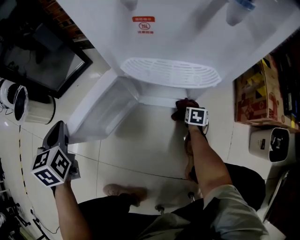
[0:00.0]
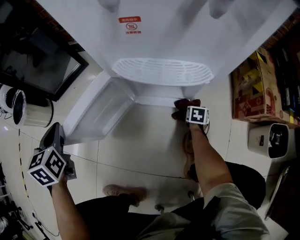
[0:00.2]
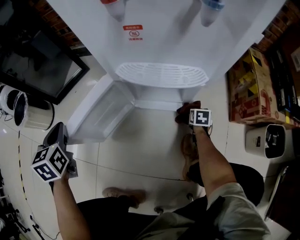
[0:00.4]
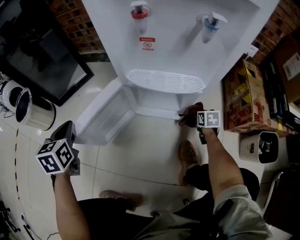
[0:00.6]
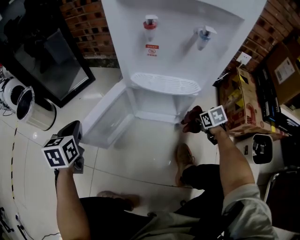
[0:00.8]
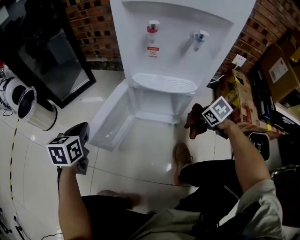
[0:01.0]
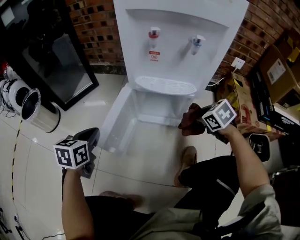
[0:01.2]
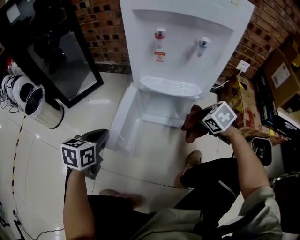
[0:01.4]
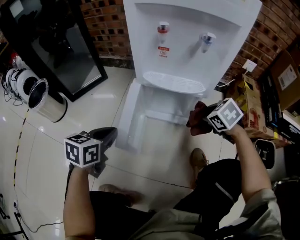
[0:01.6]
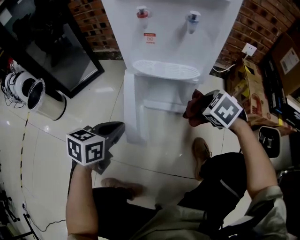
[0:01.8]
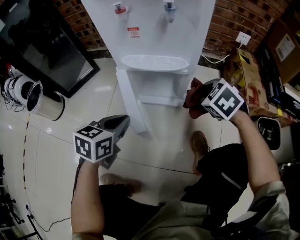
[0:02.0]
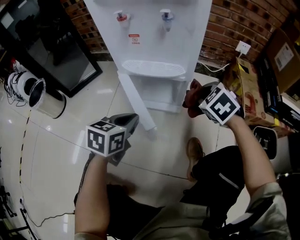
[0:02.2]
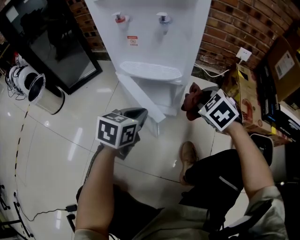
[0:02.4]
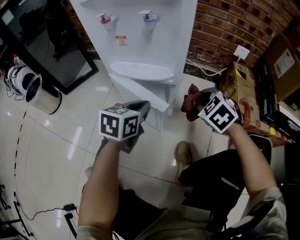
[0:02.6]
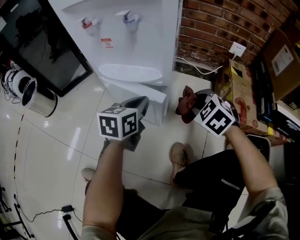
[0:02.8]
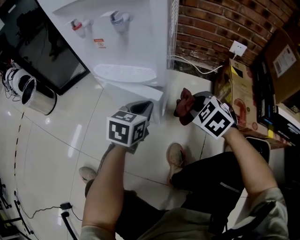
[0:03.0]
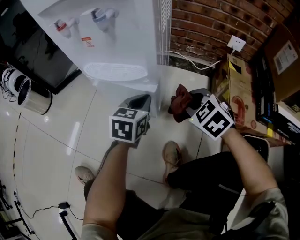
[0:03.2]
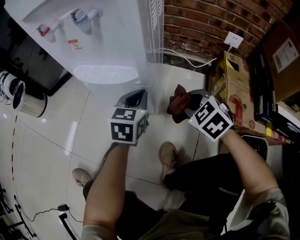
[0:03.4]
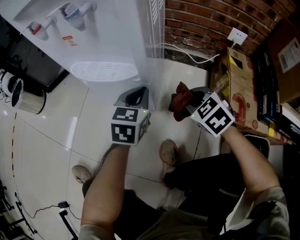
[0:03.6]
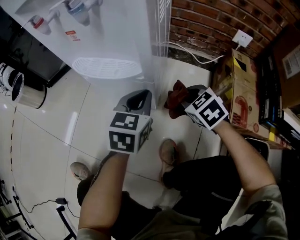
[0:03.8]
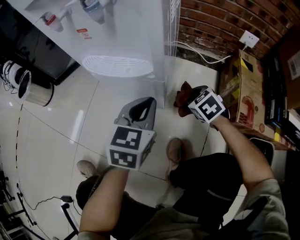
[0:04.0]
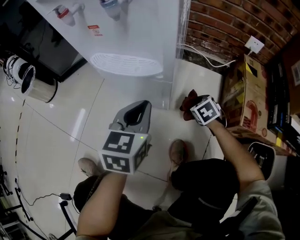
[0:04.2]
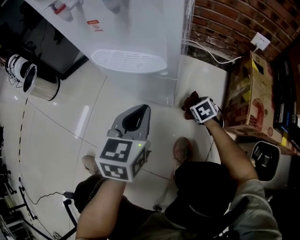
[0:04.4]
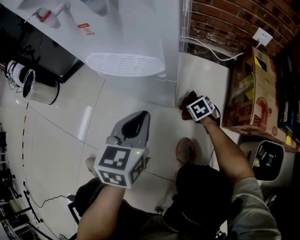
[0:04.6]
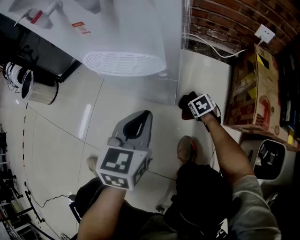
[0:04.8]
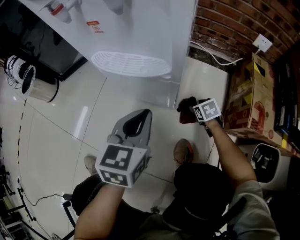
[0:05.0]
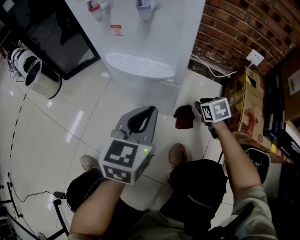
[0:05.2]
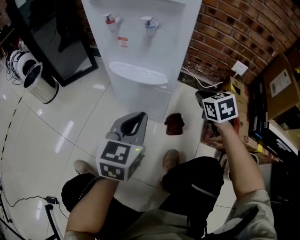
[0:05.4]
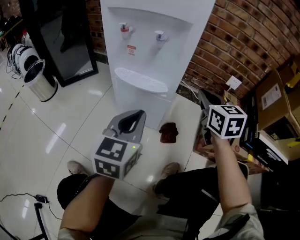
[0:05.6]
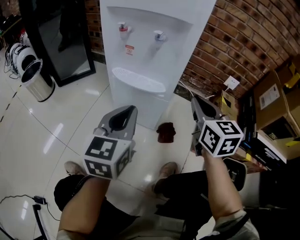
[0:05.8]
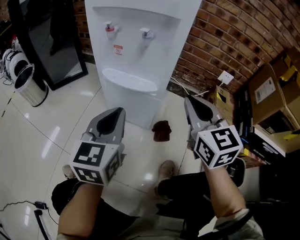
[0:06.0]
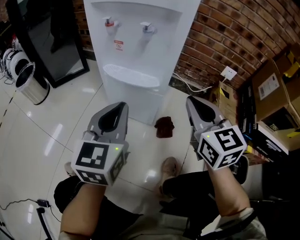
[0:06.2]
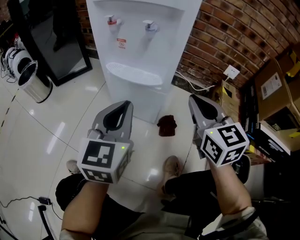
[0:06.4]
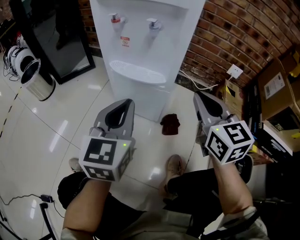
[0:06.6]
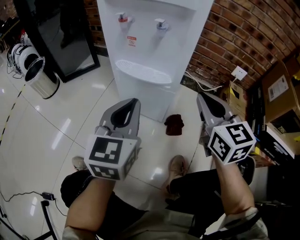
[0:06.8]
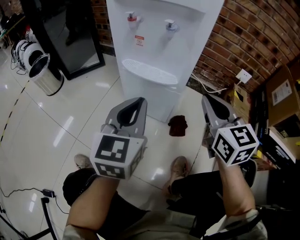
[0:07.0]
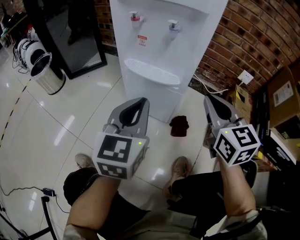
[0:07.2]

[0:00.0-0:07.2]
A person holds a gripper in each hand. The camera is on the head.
0.0 to 1.4 s: The right gripper heads upward, covering some 30 cm, and rolls counterclockwise, seen from behind, by approximately 50 degrees; the left gripper shifts some 15 cm to the right and backward, and turns by approximately 30 degrees.
1.4 to 2.8 s: The left gripper travels to the right by roughly 30 cm, while the right gripper goes roughly 10 cm to the right, and changes its angle by approximately 20 degrees.
2.8 to 4.4 s: The right gripper travels downward by approximately 25 cm, and swivels roughly 30 degrees.
4.4 to 5.8 s: The left gripper travels upward by some 15 cm. Meanwhile the right gripper goes approximately 40 cm upward, angles its fingers upward, by some 50 degrees, and closes up.
5.8 to 7.2 s: The grippers move only a little.

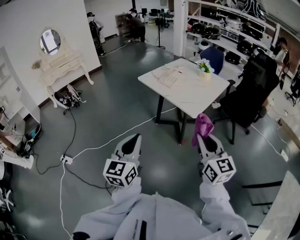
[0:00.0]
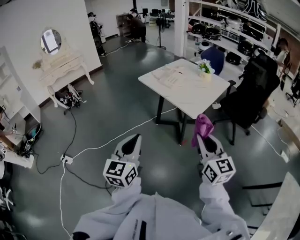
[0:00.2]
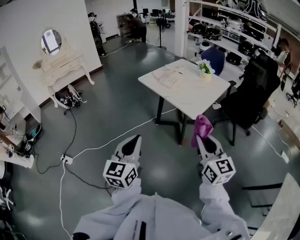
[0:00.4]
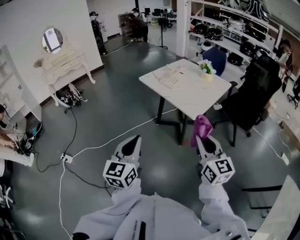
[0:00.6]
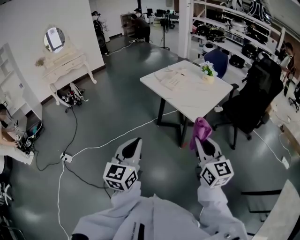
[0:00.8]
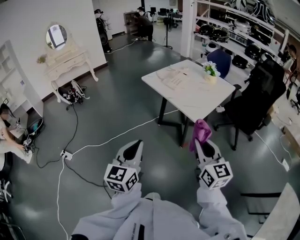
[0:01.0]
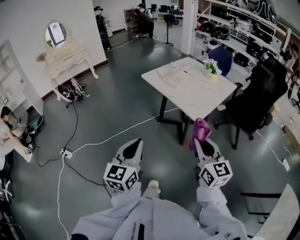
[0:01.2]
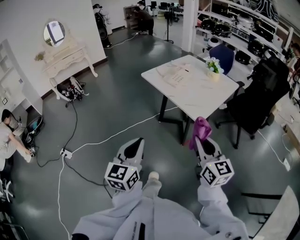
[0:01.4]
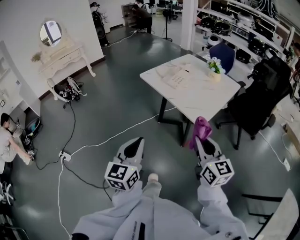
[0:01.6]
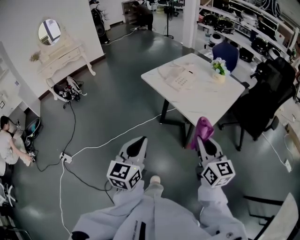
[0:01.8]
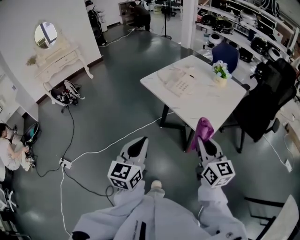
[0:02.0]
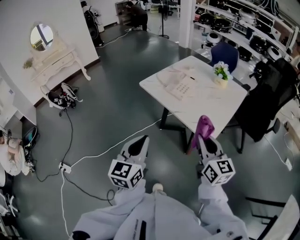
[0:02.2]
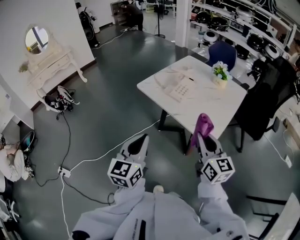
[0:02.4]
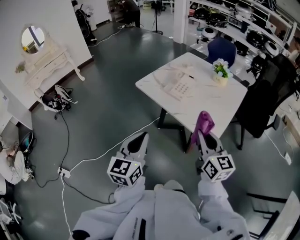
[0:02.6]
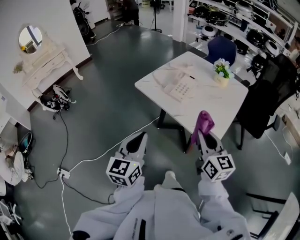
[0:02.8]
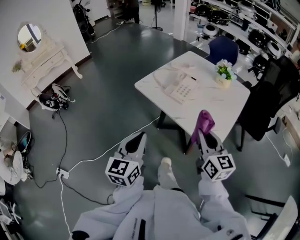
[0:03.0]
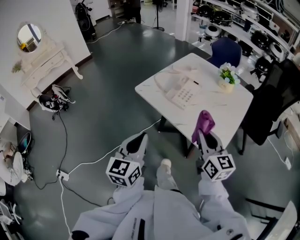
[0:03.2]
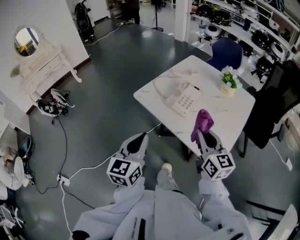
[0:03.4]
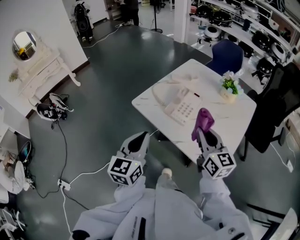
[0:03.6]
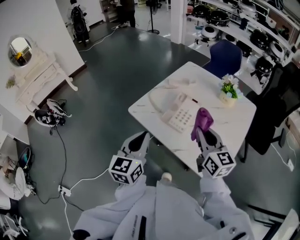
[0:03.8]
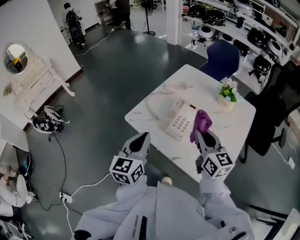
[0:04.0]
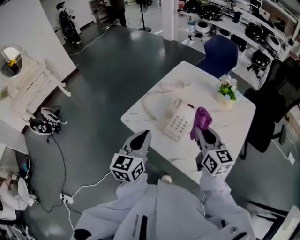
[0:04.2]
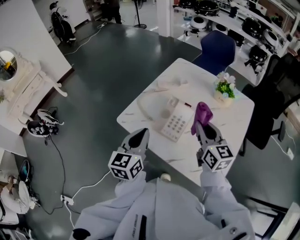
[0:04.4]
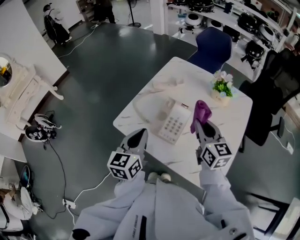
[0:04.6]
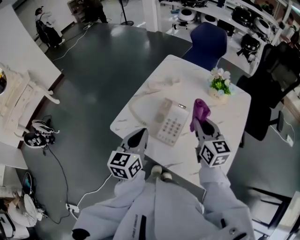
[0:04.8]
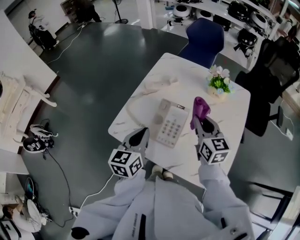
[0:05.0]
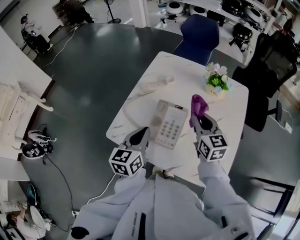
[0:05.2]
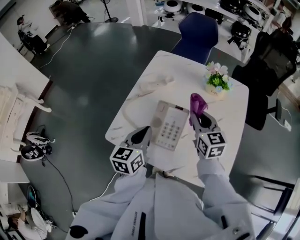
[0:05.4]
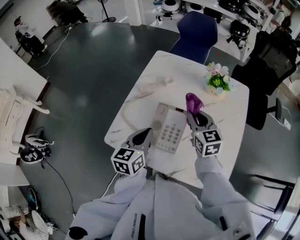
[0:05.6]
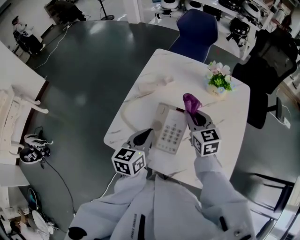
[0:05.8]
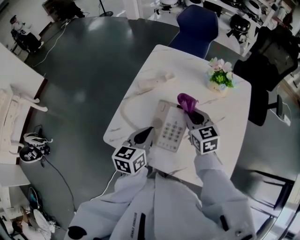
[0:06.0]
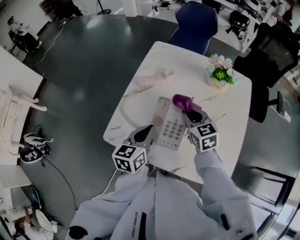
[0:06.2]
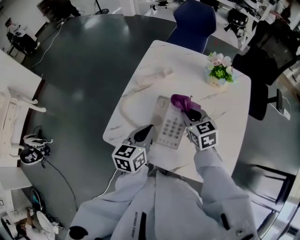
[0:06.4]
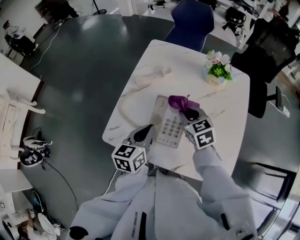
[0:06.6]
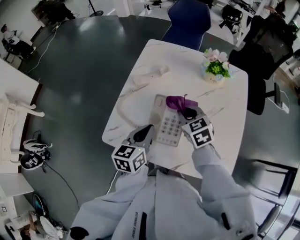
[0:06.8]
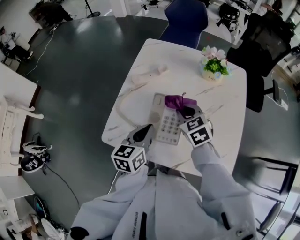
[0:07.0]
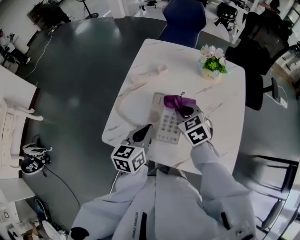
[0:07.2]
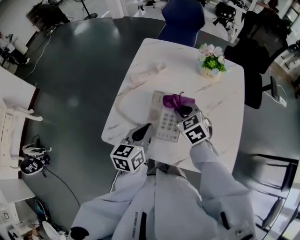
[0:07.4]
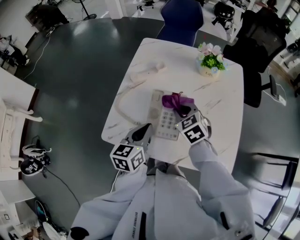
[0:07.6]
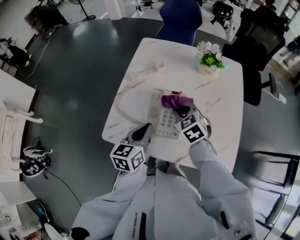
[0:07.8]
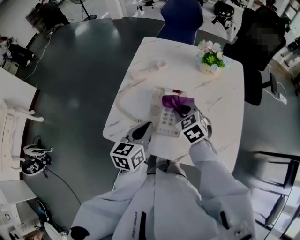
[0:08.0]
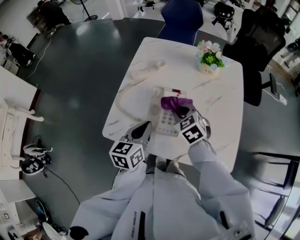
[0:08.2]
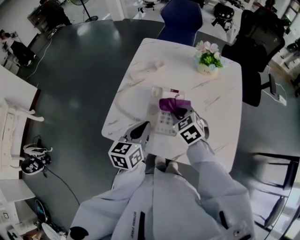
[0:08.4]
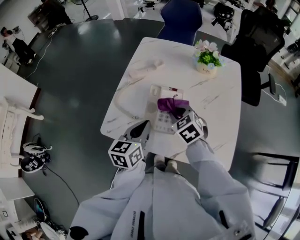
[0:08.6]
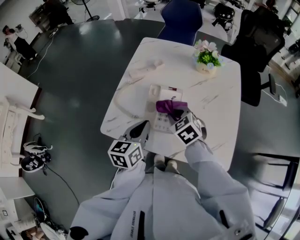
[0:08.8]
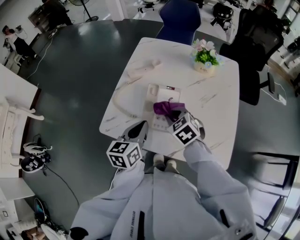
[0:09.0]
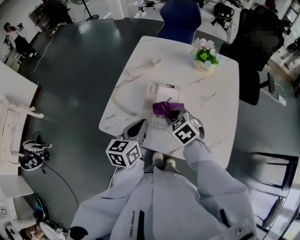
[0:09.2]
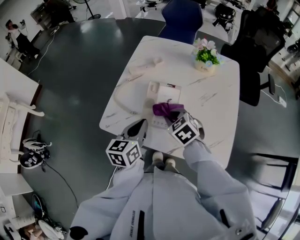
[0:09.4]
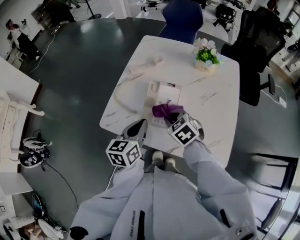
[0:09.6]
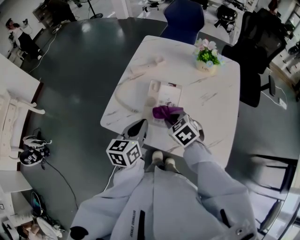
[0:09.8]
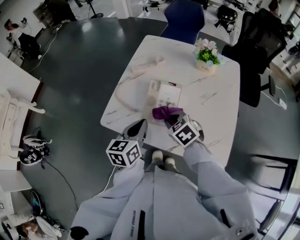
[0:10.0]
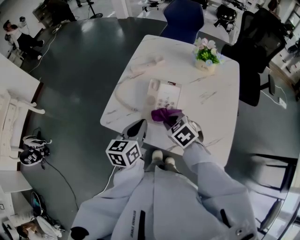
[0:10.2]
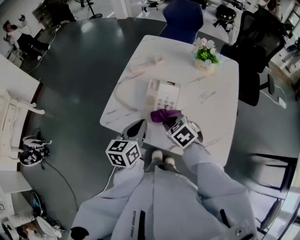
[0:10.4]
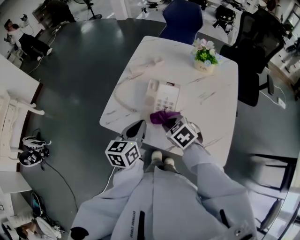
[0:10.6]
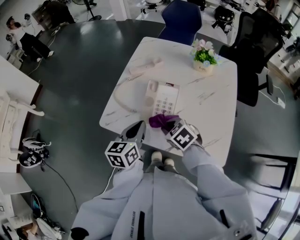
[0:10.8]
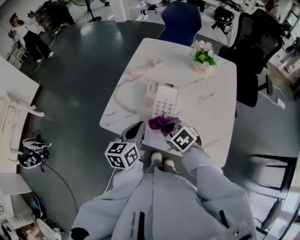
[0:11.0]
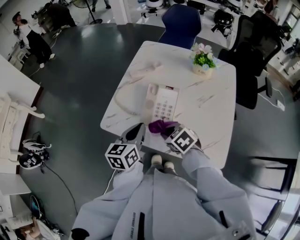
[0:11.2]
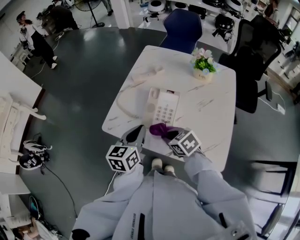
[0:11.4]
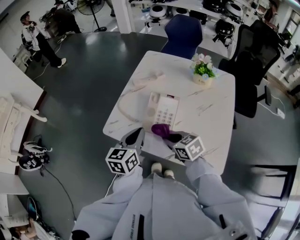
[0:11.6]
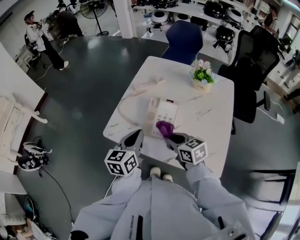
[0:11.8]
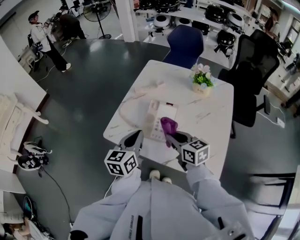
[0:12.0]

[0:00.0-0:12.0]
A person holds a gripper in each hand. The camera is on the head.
0.0 to 1.6 s: The right gripper heads forward and downward, covering roughly 15 cm; the left gripper shifts about 10 cm forward.
1.6 to 3.0 s: The grippers both shift forward by roughly 25 cm.
3.0 to 4.4 s: Both grippers travel together forward, some 30 cm.
4.4 to 6.0 s: The grippers both shift forward and downward by some 15 cm. The right gripper changes its angle by some 20 degrees. Meanwhile the left gripper turns by about 20 degrees.
6.0 to 7.6 s: The right gripper moves some 5 cm, and changes its angle by approximately 20 degrees.
7.6 to 9.0 s: The right gripper shifts approximately 5 cm backward.
9.0 to 10.4 s: The right gripper is displaced backward by approximately 5 cm.
10.4 to 12.0 s: The right gripper heads upward, covering about 10 cm, and tips its fingers upward by approximately 30 degrees. The left gripper heads upward, covering roughly 5 cm.

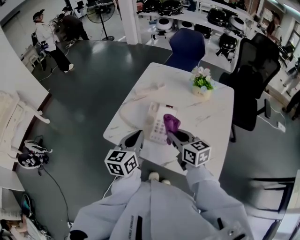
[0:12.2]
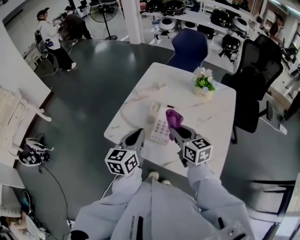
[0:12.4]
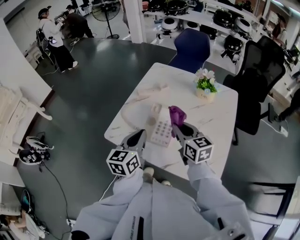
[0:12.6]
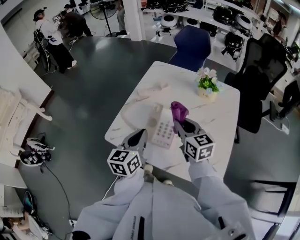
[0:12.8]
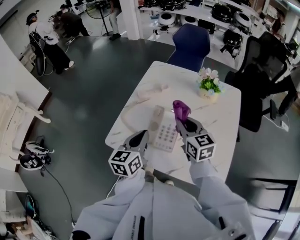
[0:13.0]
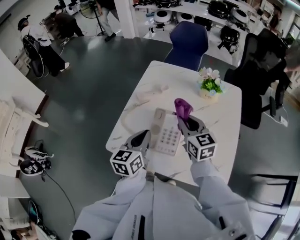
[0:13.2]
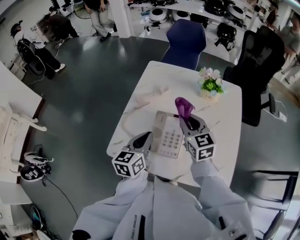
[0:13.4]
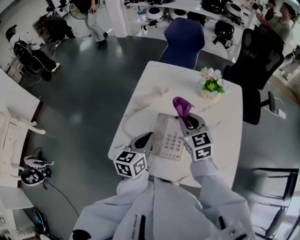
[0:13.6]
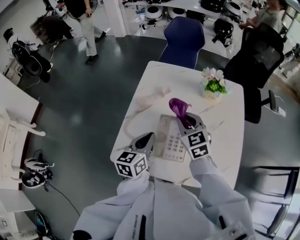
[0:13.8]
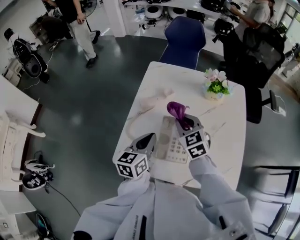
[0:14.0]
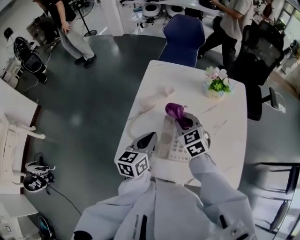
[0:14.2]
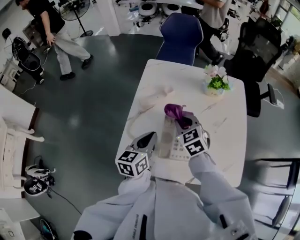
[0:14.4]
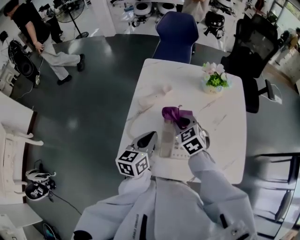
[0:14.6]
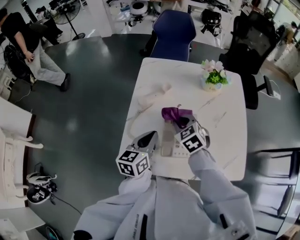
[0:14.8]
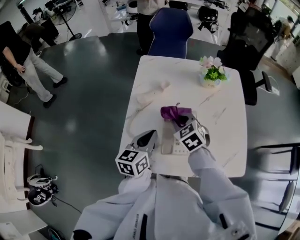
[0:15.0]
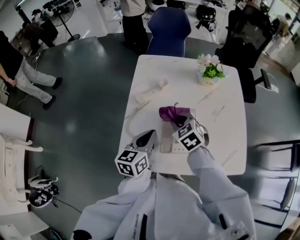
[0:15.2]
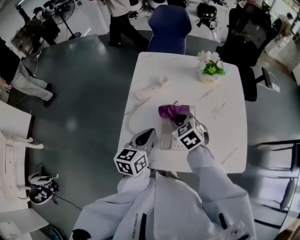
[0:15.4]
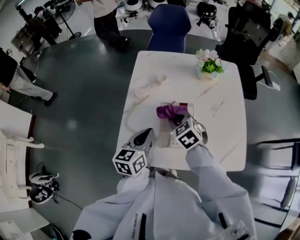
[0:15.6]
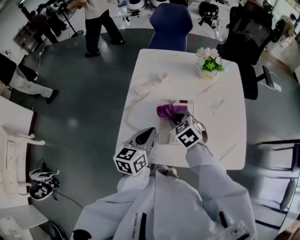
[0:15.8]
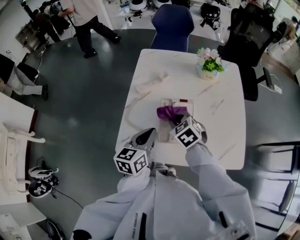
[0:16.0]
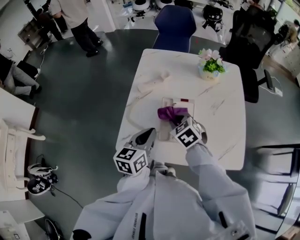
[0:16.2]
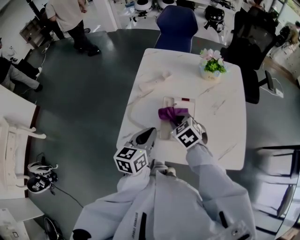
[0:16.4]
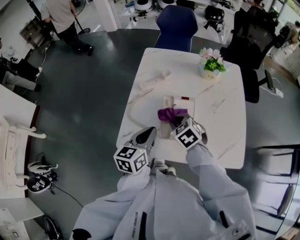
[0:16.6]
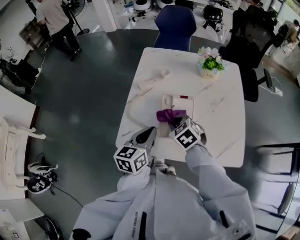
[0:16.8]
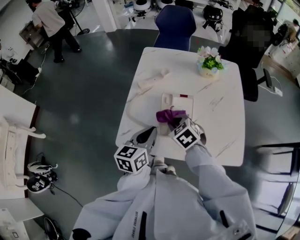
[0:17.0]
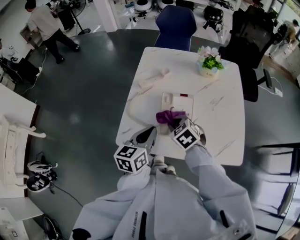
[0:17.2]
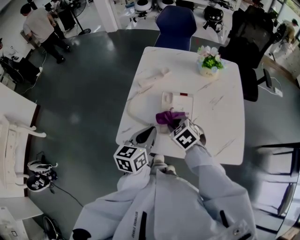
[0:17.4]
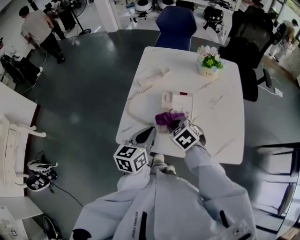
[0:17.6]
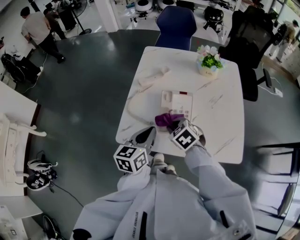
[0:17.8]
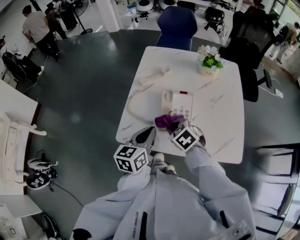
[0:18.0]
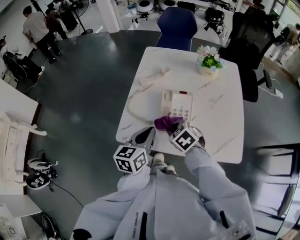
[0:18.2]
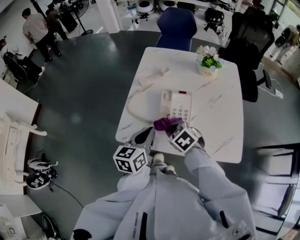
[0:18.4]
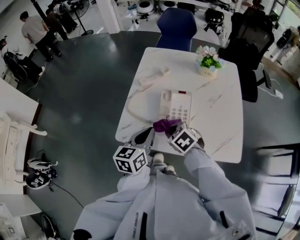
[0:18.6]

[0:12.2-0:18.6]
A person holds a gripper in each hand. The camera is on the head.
12.2 to 13.8 s: Both grippers move forward, roughly 15 cm. The right gripper changes its angle by roughly 30 degrees.
13.8 to 15.4 s: The right gripper heads downward, covering about 5 cm, and rotates some 20 degrees.
15.4 to 17.0 s: The grippers both shift backward by about 5 cm.
17.0 to 18.6 s: The right gripper goes about 5 cm backward.
